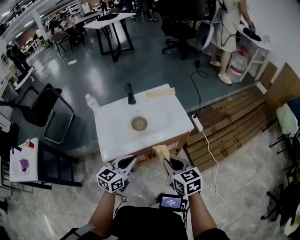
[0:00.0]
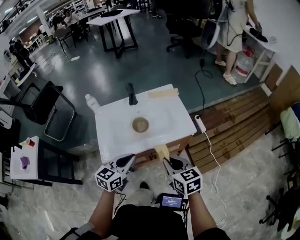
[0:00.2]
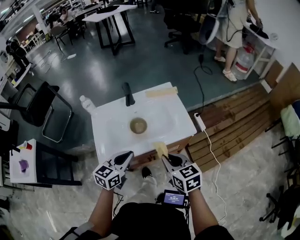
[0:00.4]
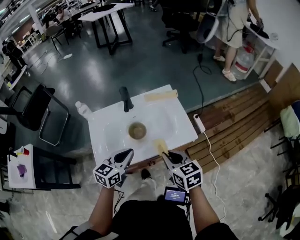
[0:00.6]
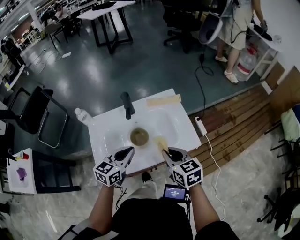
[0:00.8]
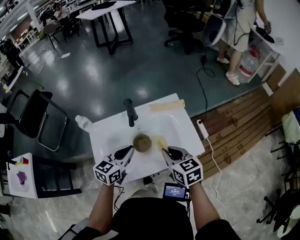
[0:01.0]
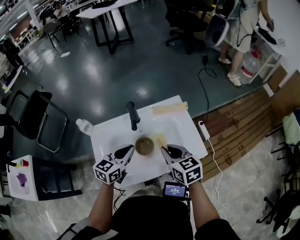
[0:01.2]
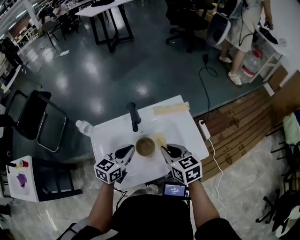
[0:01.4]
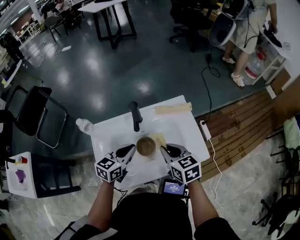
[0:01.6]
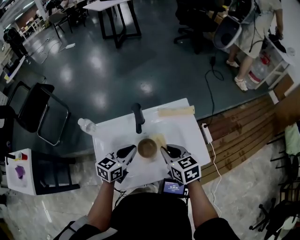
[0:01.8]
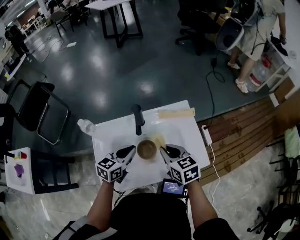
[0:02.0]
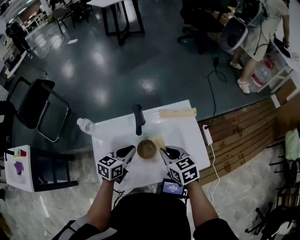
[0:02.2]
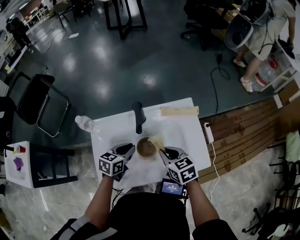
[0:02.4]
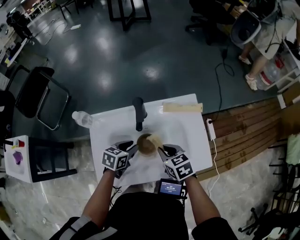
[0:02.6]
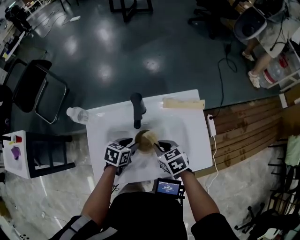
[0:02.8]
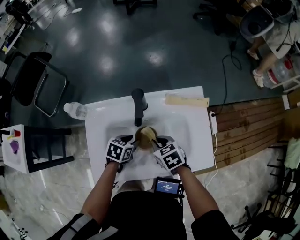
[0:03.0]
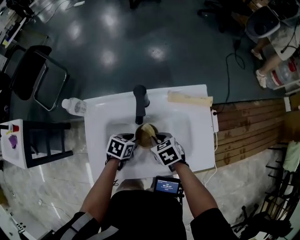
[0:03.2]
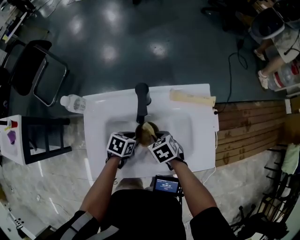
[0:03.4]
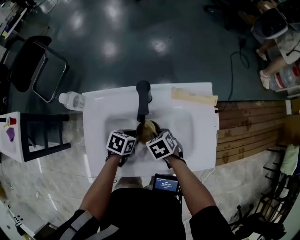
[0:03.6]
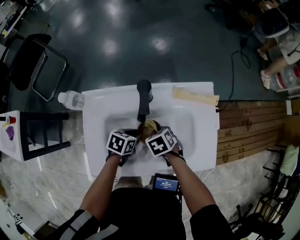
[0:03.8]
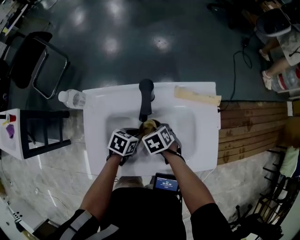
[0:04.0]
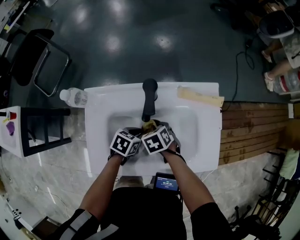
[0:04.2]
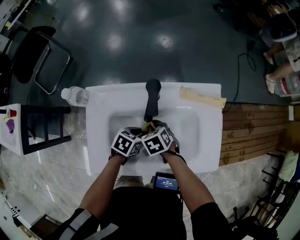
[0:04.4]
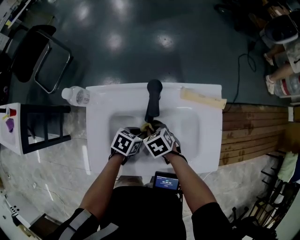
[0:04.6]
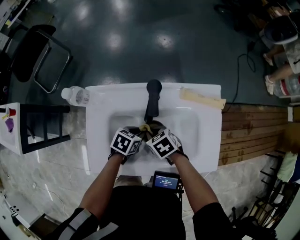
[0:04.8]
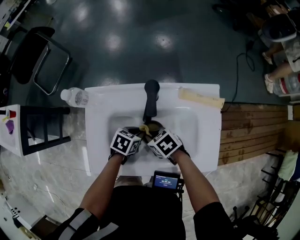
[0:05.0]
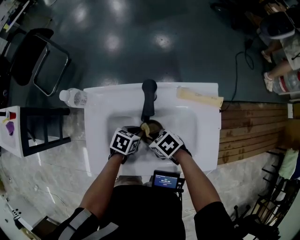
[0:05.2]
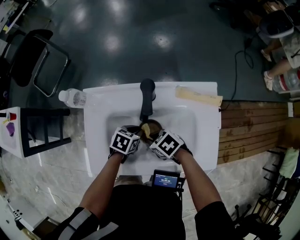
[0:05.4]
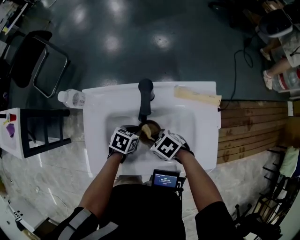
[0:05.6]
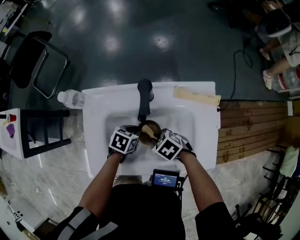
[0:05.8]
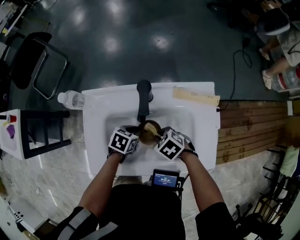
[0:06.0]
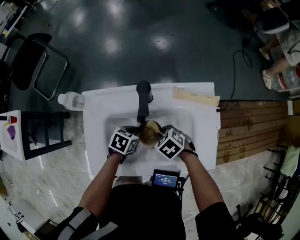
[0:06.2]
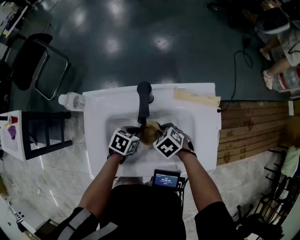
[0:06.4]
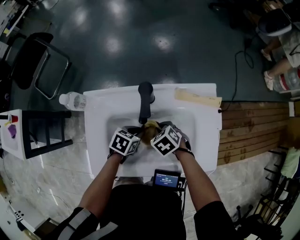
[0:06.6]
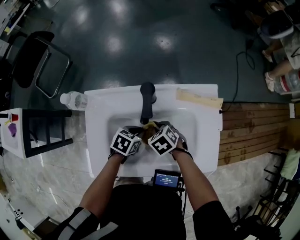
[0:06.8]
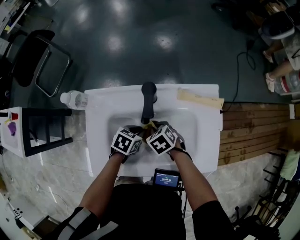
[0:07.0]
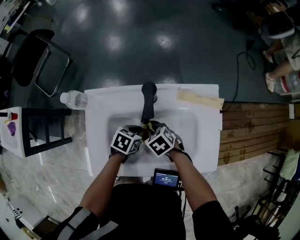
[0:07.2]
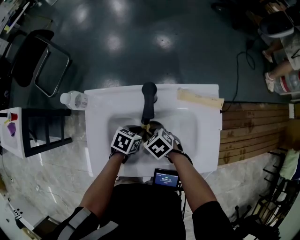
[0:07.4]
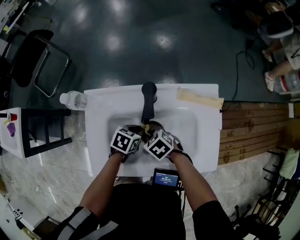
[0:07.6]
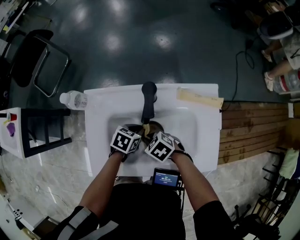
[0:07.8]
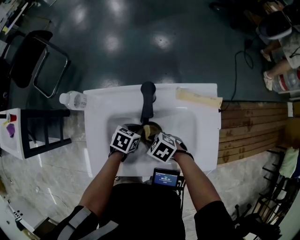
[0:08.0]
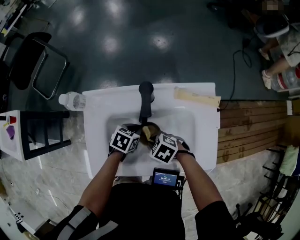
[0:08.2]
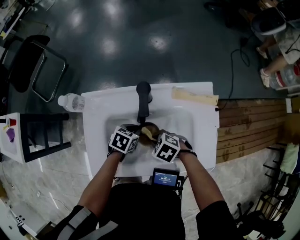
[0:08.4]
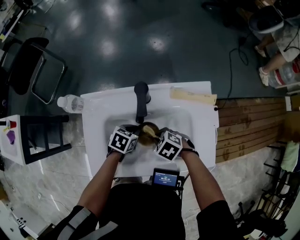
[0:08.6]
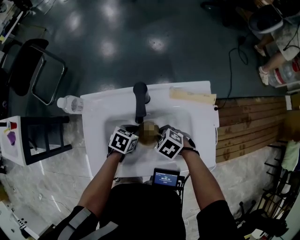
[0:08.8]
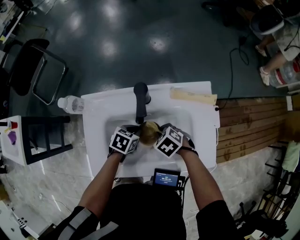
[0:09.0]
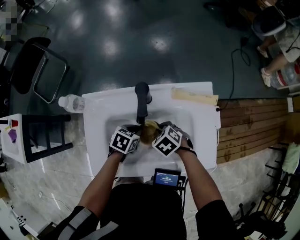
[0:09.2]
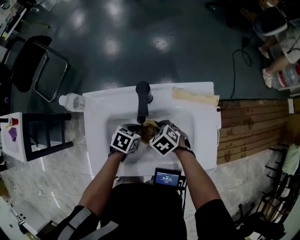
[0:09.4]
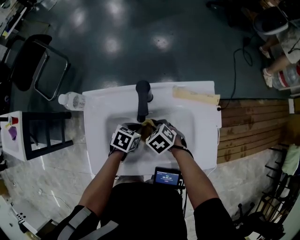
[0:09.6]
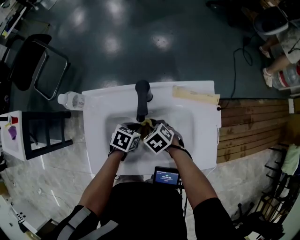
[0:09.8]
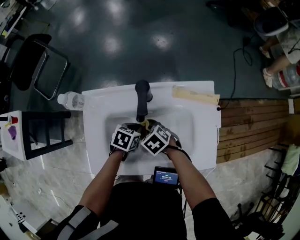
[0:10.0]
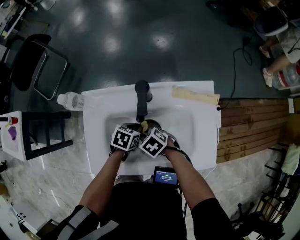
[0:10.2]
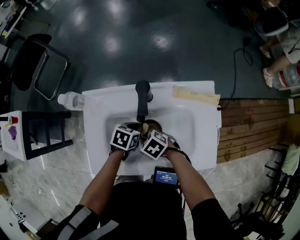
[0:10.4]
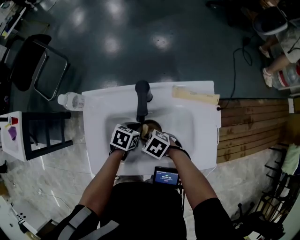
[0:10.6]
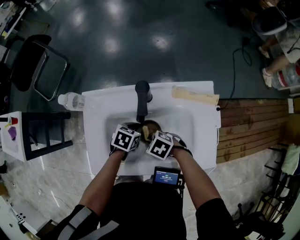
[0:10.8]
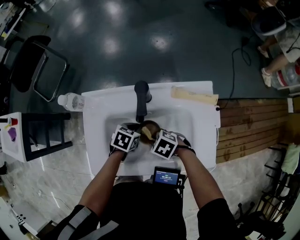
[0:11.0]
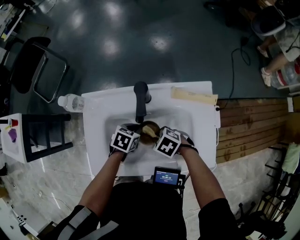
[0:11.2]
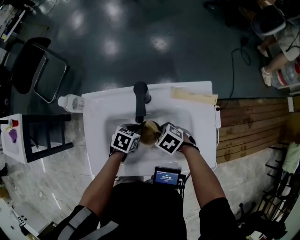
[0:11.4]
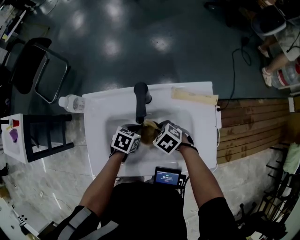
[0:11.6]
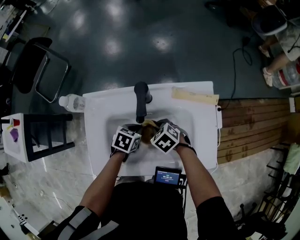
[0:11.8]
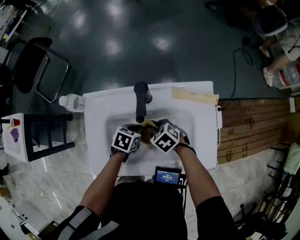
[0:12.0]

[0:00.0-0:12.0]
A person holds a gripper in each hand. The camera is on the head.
0.0 to 1.6 s: The grippers both shift forward by about 30 cm.
1.6 to 3.0 s: Both grippers move downward, roughly 15 cm. The left gripper points its fingers about 30 degrees further downward, and opens its fingers; the right gripper swivels roughly 30 degrees.
3.0 to 4.4 s: The right gripper moves downward, roughly 10 cm.
4.4 to 6.0 s: The right gripper ends up approximately 5 cm from where it was, and changes its angle by about 20 degrees.
6.0 to 7.6 s: The right gripper moves some 5 cm.
7.6 to 9.0 s: The right gripper changes place by roughly 5 cm.
9.0 to 10.4 s: The right gripper changes place by roughly 10 cm.
10.4 to 12.0 s: The right gripper ends up some 10 cm from where it was.

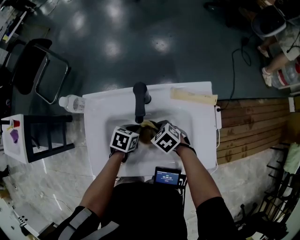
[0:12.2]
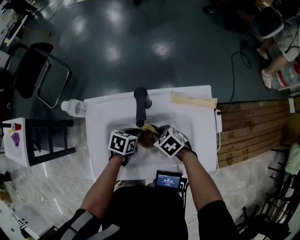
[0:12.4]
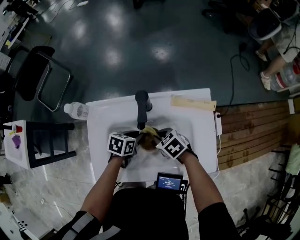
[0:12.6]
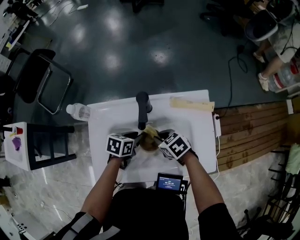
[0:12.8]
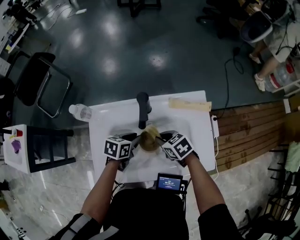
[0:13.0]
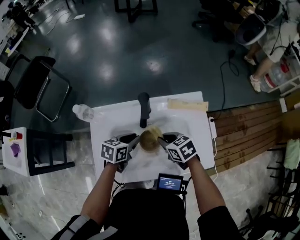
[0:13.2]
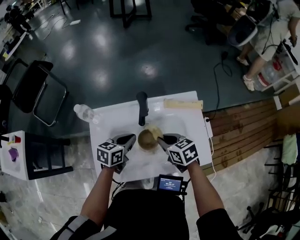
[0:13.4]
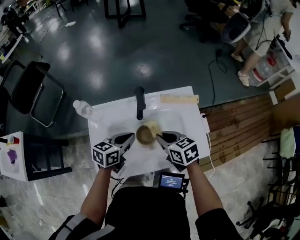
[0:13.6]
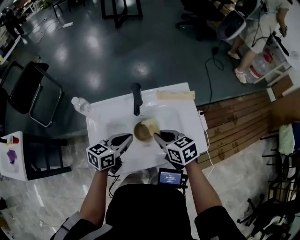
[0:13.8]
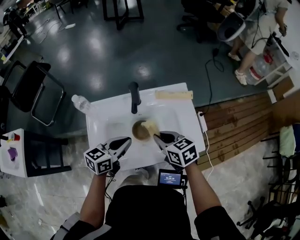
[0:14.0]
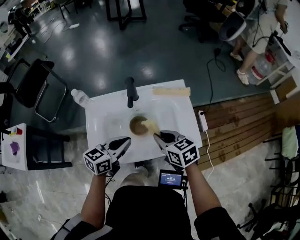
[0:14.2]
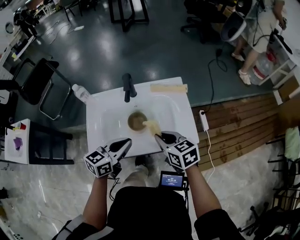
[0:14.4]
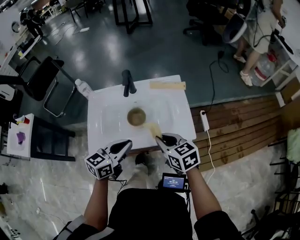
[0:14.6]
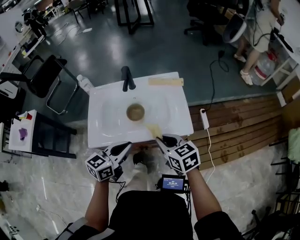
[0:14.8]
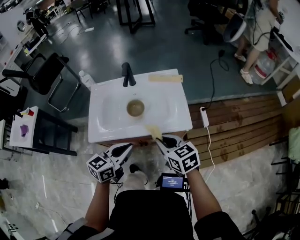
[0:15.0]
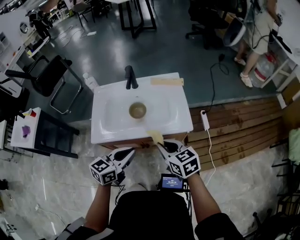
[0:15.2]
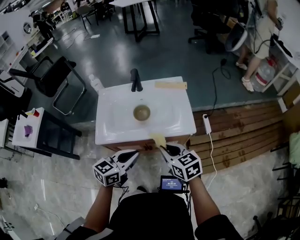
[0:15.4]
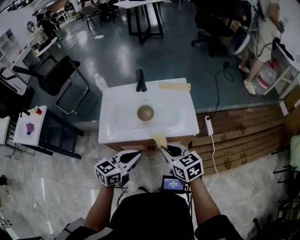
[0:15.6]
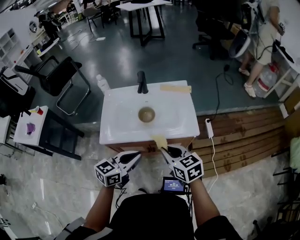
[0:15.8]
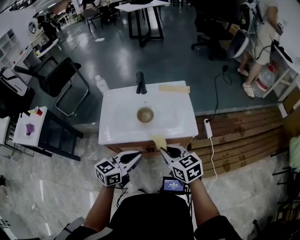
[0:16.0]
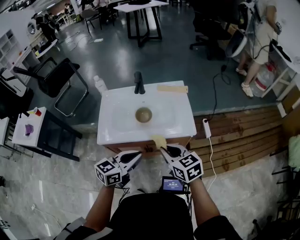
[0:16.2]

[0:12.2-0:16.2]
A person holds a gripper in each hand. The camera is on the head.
12.2 to 13.6 s: The two grippers go approximately 15 cm upward. The right gripper rotates about 40 degrees. The left gripper tilts its fingers some 30 degrees upward.
13.6 to 14.8 s: The grippers both shift backward and to the right by approximately 20 cm.
14.8 to 16.2 s: The grippers both shift backward by some 10 cm.

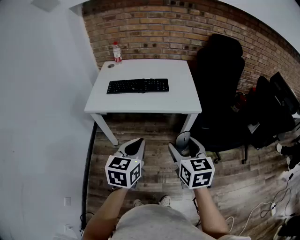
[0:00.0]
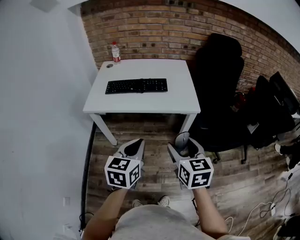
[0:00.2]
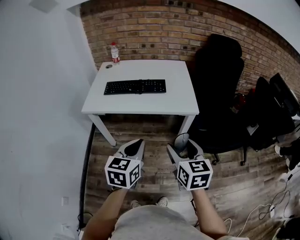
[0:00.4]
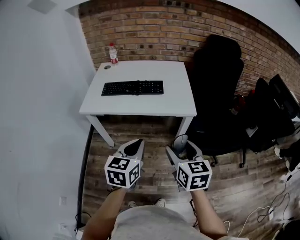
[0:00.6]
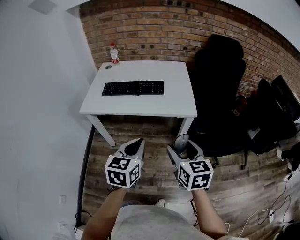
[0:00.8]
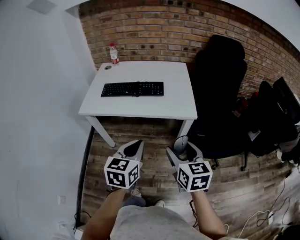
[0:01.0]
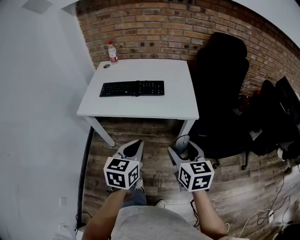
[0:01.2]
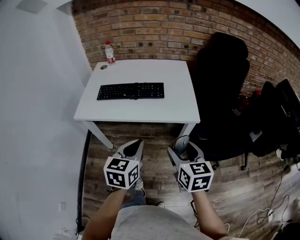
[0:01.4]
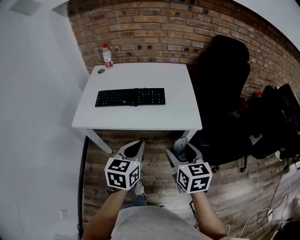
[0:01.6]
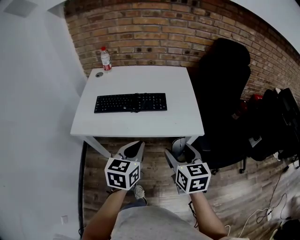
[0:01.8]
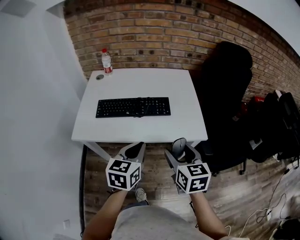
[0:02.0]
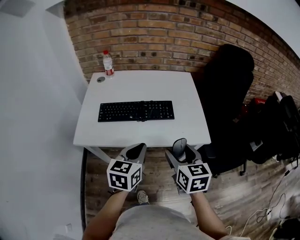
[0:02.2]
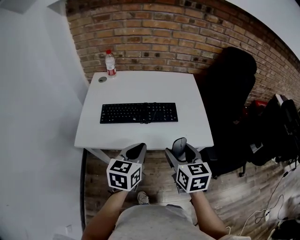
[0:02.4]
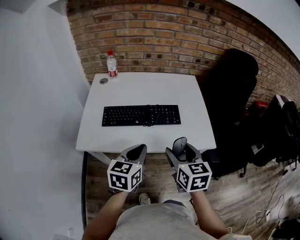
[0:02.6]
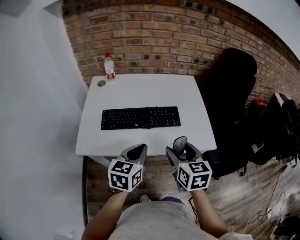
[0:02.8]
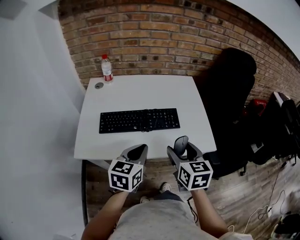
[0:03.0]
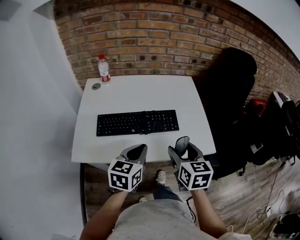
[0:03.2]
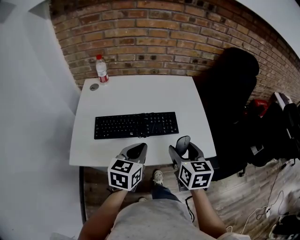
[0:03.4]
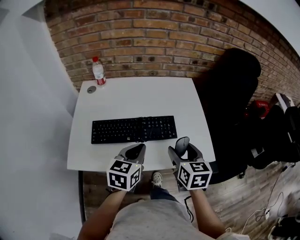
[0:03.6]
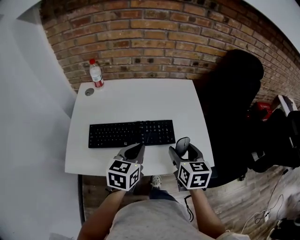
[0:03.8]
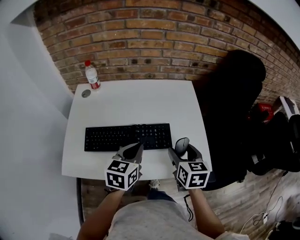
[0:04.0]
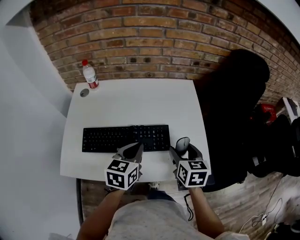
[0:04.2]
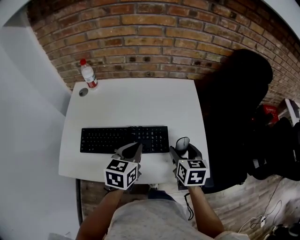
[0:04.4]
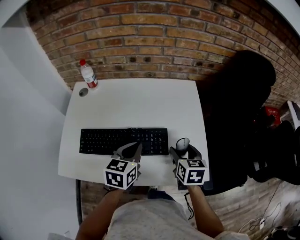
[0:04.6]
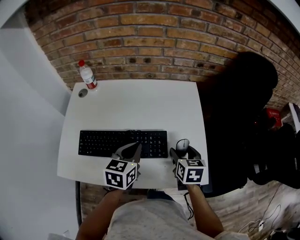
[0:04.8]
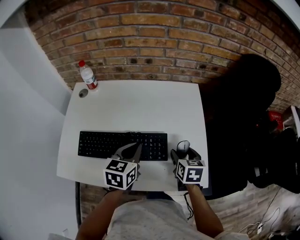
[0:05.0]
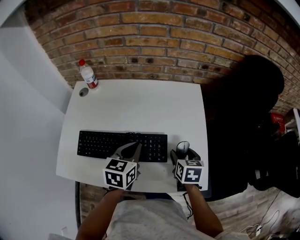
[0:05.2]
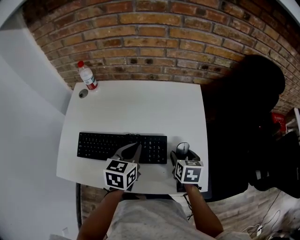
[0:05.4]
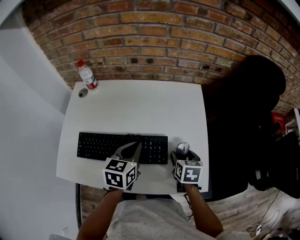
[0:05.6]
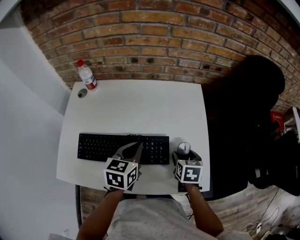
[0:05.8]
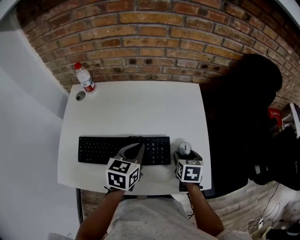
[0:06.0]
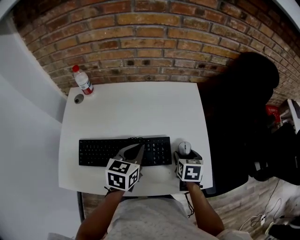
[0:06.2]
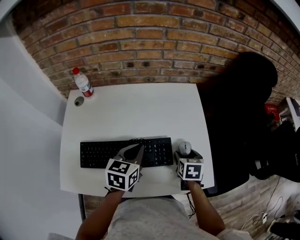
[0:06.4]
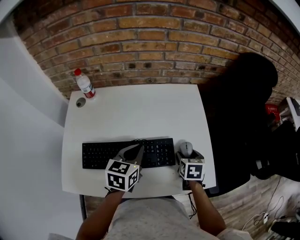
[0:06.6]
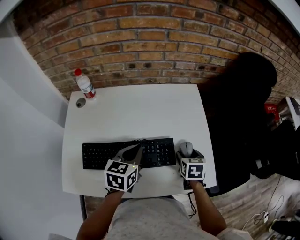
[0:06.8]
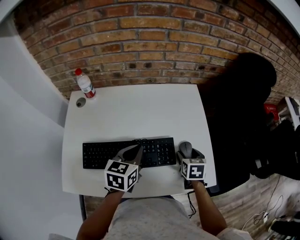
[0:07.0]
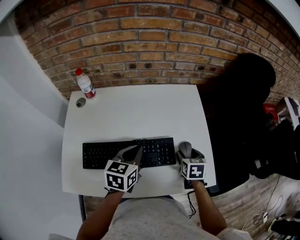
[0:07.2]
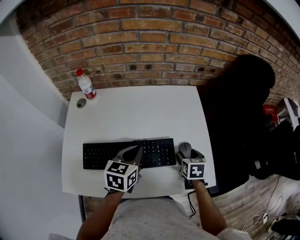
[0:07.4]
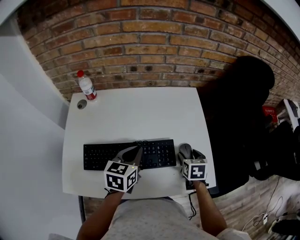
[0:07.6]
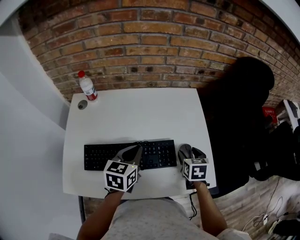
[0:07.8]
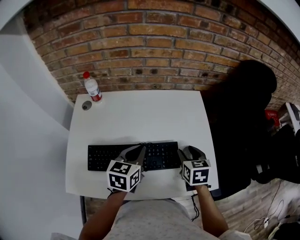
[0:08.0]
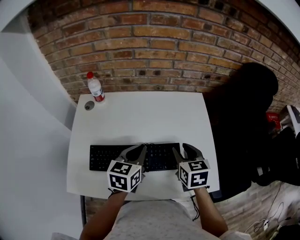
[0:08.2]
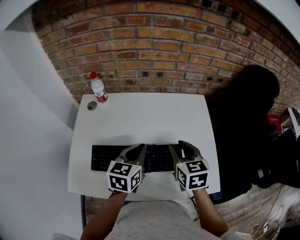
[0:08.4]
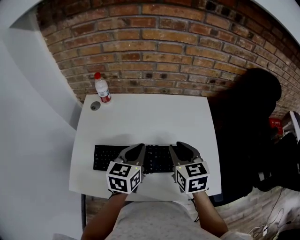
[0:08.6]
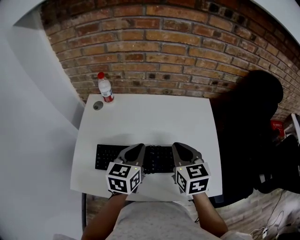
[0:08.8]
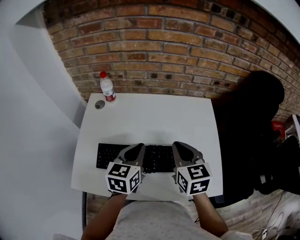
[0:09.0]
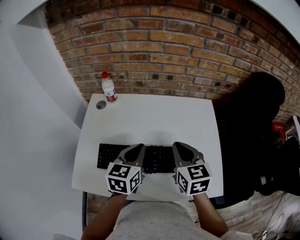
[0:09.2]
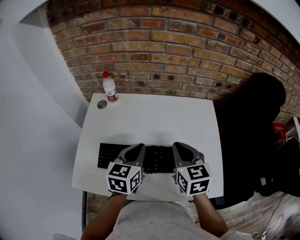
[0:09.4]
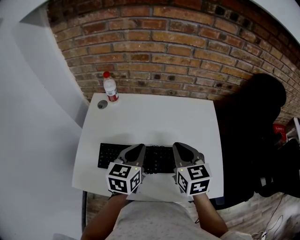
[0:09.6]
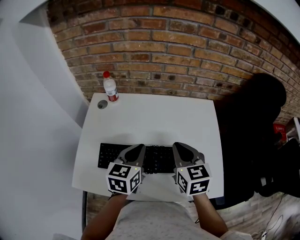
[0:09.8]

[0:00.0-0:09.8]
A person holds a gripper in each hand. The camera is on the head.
0.0 to 1.4 s: The grippers both shift forward by some 10 cm.
1.4 to 2.8 s: Both grippers travel together forward and to the left, about 25 cm.
2.8 to 4.2 s: Both grippers travel together forward, some 20 cm.
4.2 to 5.6 s: The right gripper travels downward and forward by about 10 cm, while the left gripper shifts approximately 10 cm forward.
5.6 to 7.0 s: The grippers make only small movements.
7.0 to 8.4 s: The left gripper moves approximately 5 cm; the right gripper heads upward and to the left, covering approximately 20 cm, changes its angle by approximately 30 degrees, and closes up.
8.4 to 9.8 s: The right gripper ends up approximately 5 cm from where it was, and closes.
